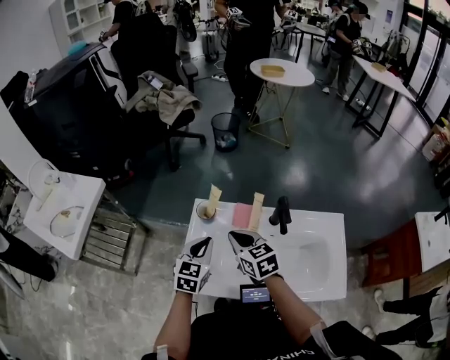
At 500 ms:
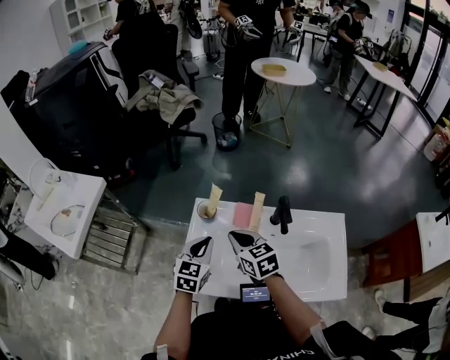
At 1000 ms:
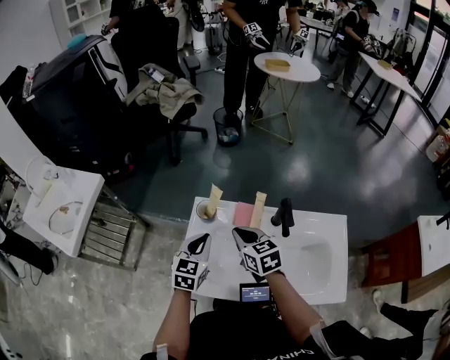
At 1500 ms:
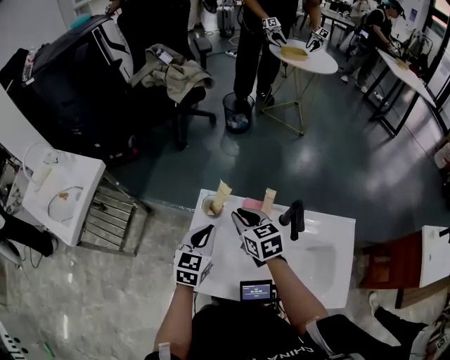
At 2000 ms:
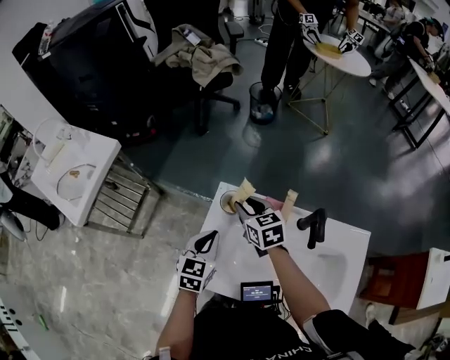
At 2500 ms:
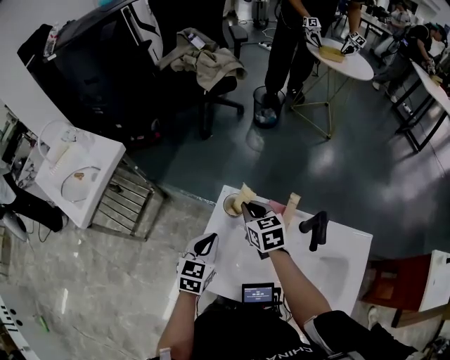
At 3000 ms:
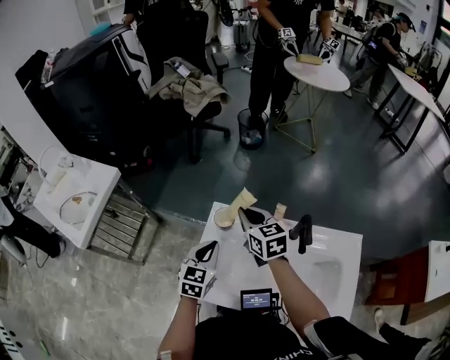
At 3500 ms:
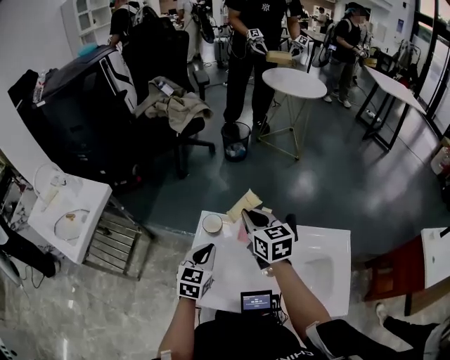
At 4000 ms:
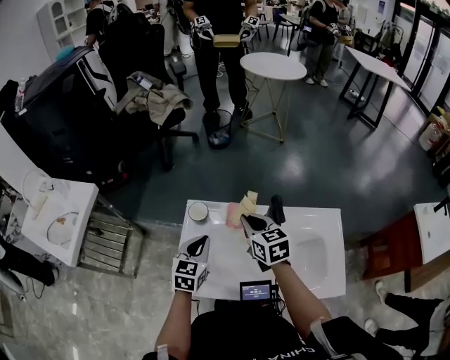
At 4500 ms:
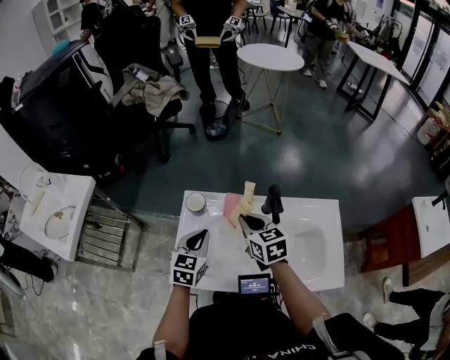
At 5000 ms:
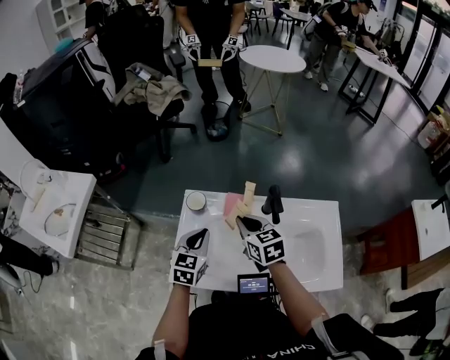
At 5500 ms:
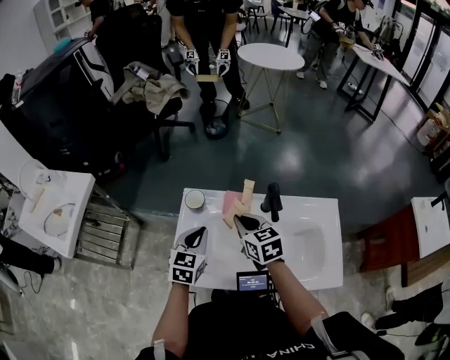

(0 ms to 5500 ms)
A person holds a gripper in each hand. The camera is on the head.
0 ms - 2000 ms: The left gripper shifts by some 5 cm. The right gripper moves forward, about 15 cm, and opens up.
2000 ms - 3500 ms: The right gripper goes approximately 15 cm upward and to the right, and closes; the left gripper changes place by approximately 5 cm.
3500 ms - 5500 ms: The right gripper moves backward and downward, some 10 cm.

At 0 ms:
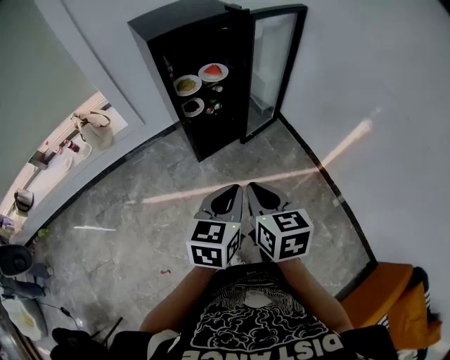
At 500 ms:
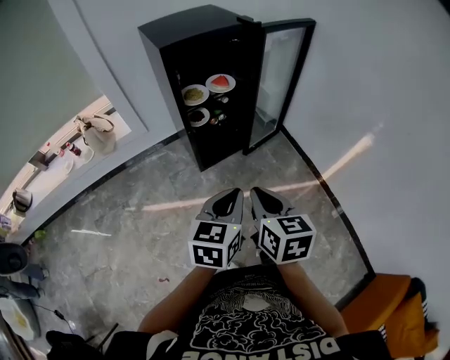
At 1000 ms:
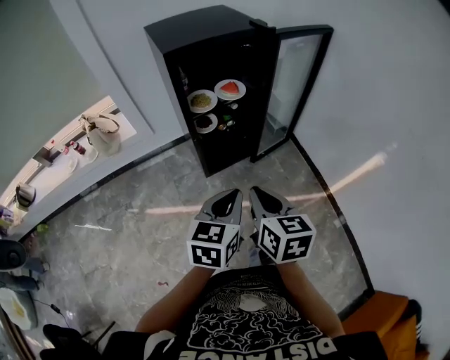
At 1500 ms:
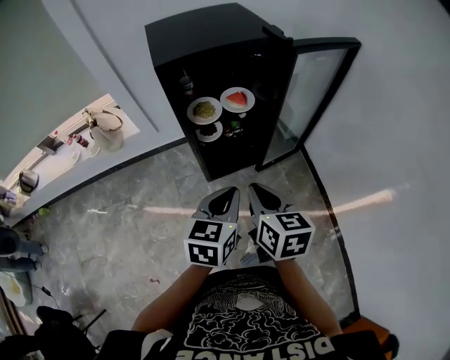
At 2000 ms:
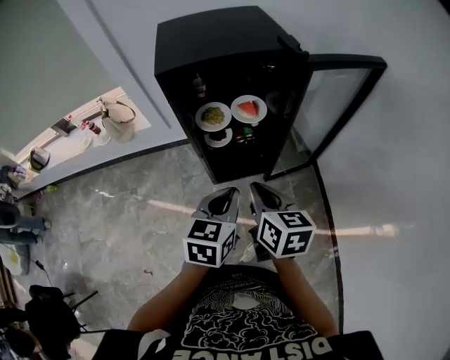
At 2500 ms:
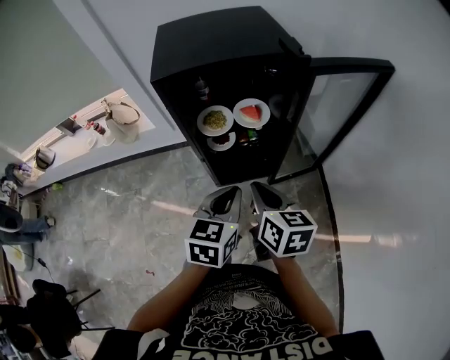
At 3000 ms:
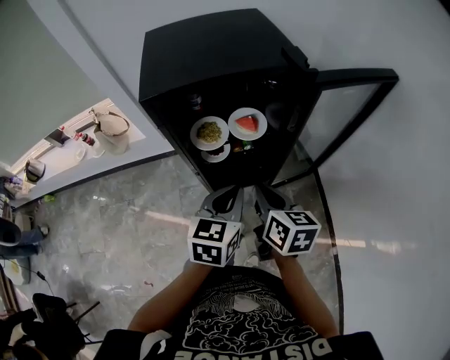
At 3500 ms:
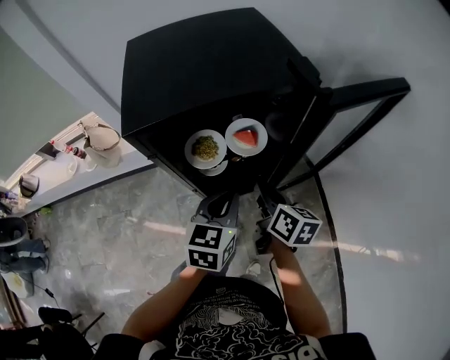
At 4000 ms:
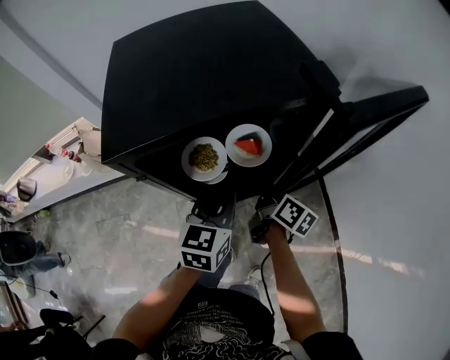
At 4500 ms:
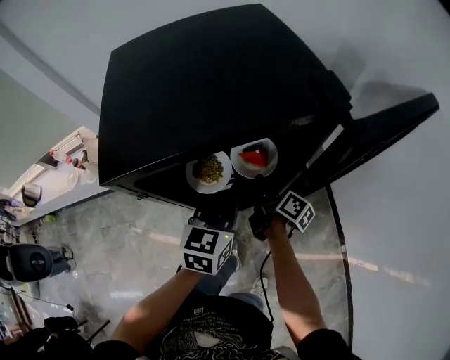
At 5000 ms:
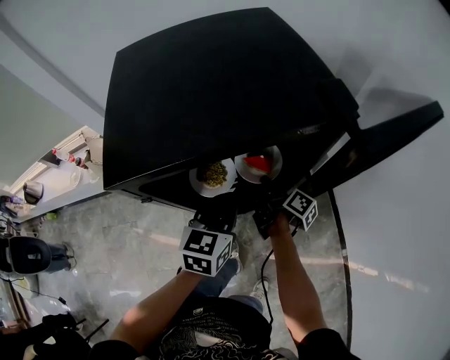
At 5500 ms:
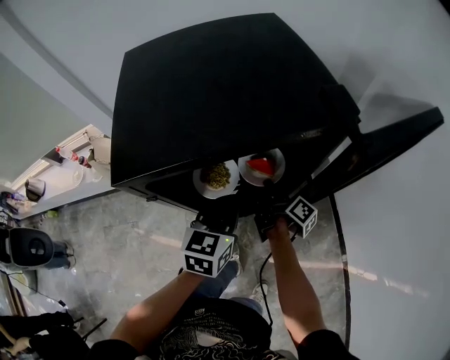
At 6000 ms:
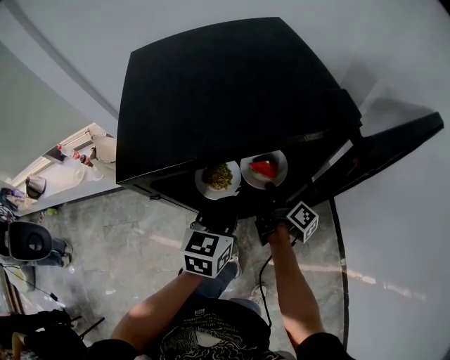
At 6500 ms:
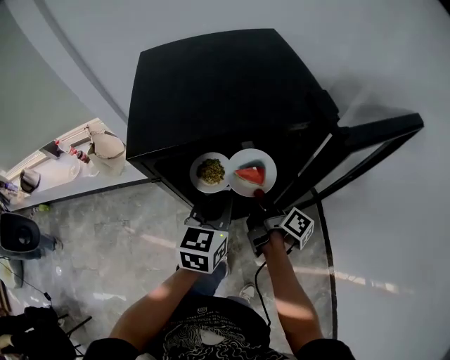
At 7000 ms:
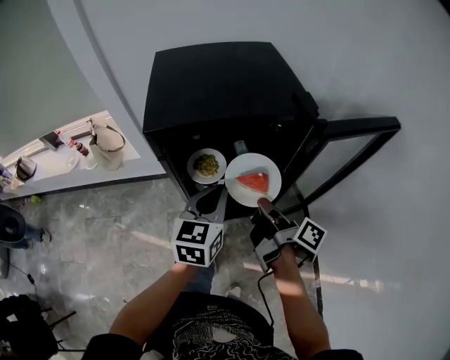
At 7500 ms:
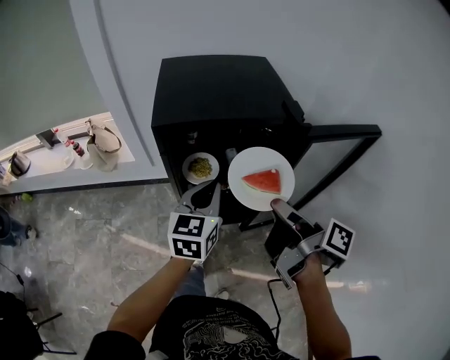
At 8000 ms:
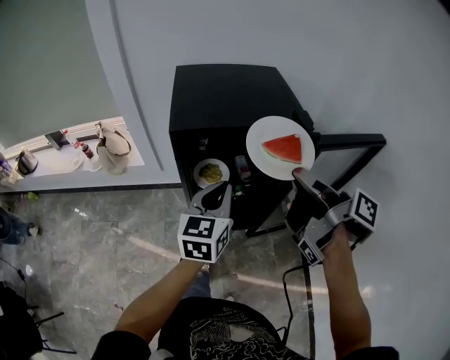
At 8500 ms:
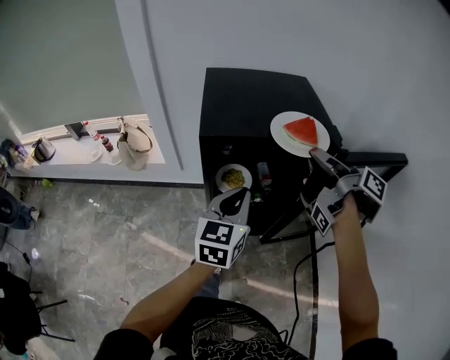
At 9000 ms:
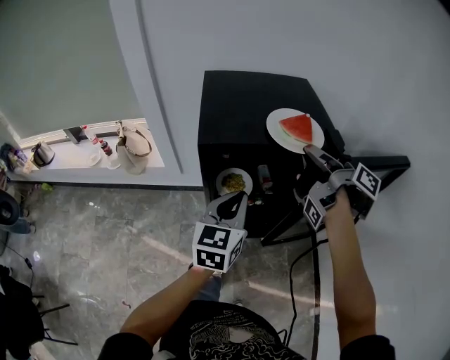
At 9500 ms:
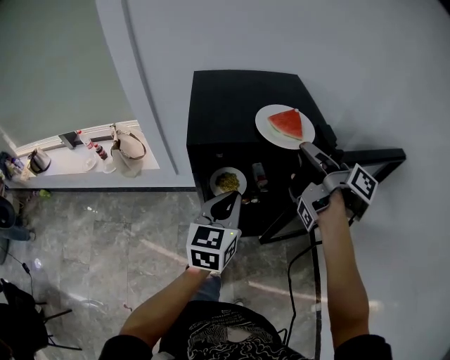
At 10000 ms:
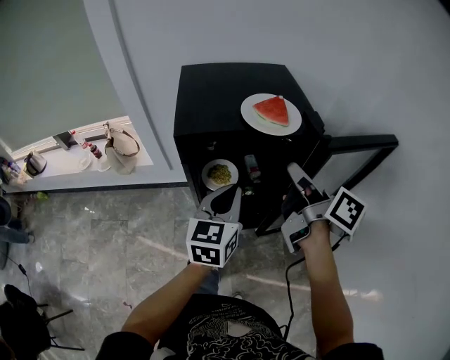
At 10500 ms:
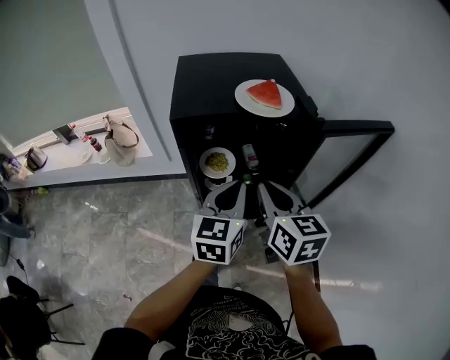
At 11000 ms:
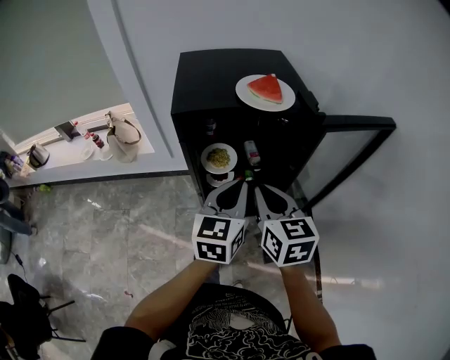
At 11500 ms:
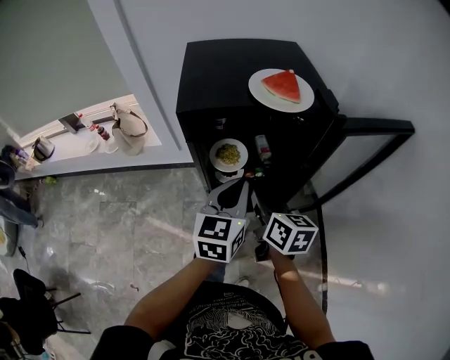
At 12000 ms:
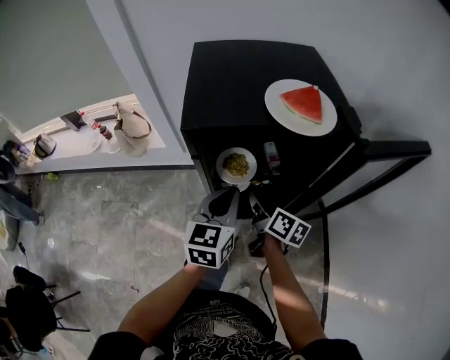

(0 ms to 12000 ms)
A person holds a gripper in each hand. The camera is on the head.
0 ms - 2000 ms: Both grippers move forward, roughly 30 cm.
2000 ms - 4000 ms: The left gripper heads forward, covering approximately 25 cm. Meanwhile the right gripper travels forward and downward by about 30 cm, and rotates some 40 degrees.
4000 ms - 6000 ms: The right gripper goes approximately 5 cm forward, swivels some 30 degrees, and opens, then closes again.
6000 ms - 8000 ms: The left gripper is displaced upward and backward by approximately 15 cm. The right gripper goes about 40 cm upward and backward, and changes its angle by about 20 degrees.
8000 ms - 10000 ms: The right gripper turns by approximately 20 degrees.
10000 ms - 12000 ms: The left gripper travels downward by some 10 cm. The right gripper goes approximately 25 cm downward.

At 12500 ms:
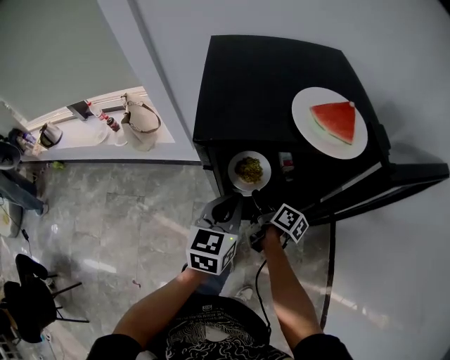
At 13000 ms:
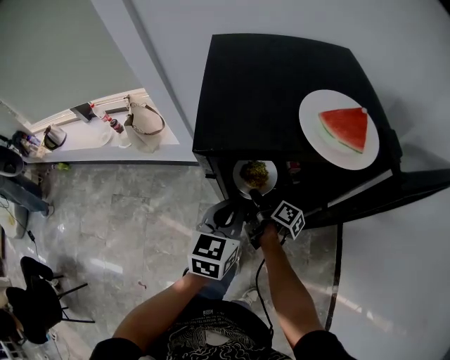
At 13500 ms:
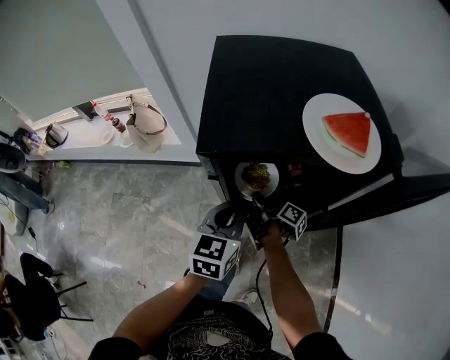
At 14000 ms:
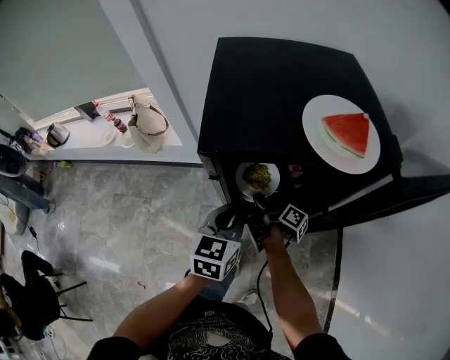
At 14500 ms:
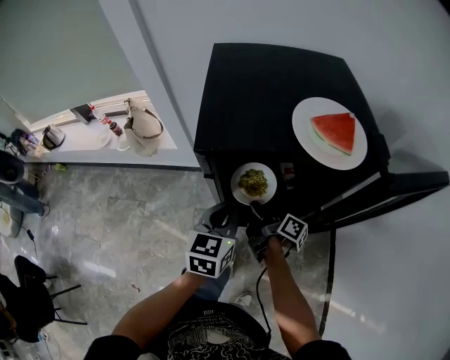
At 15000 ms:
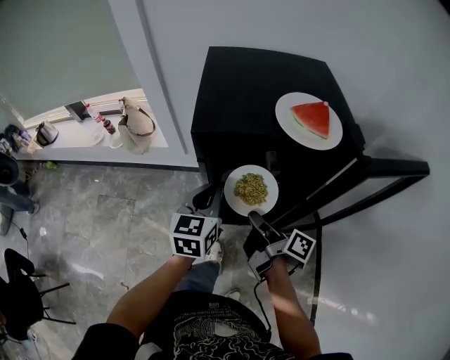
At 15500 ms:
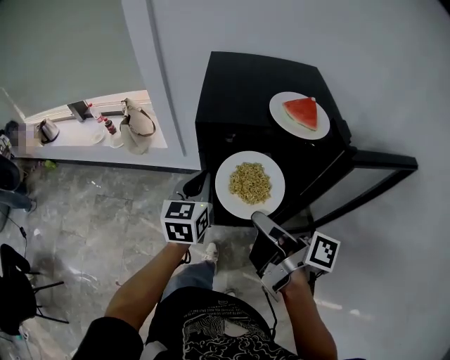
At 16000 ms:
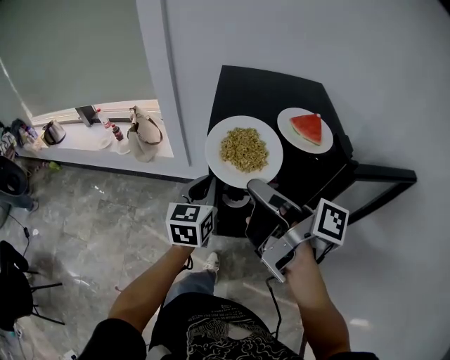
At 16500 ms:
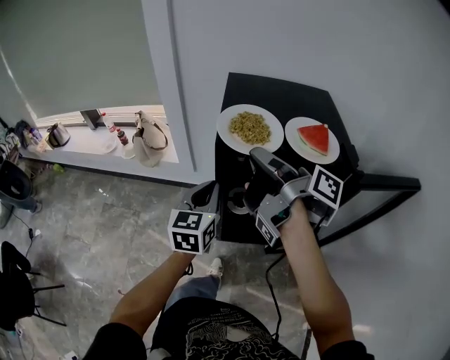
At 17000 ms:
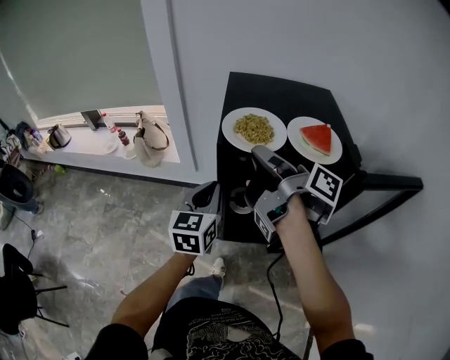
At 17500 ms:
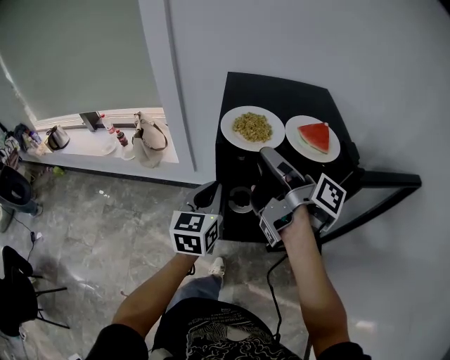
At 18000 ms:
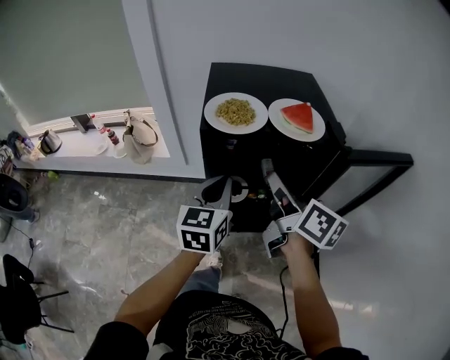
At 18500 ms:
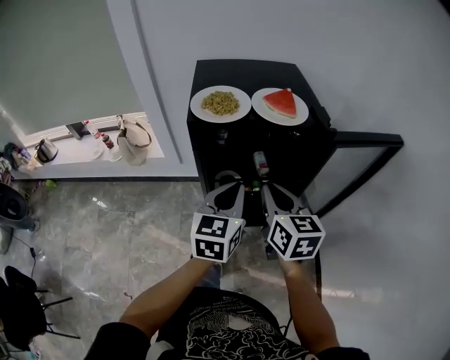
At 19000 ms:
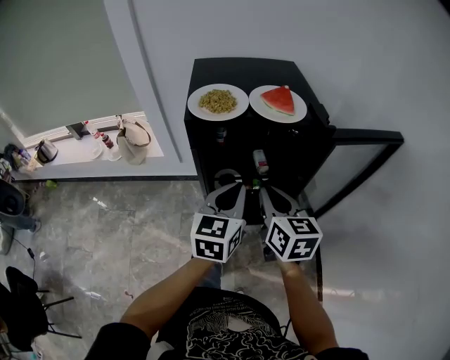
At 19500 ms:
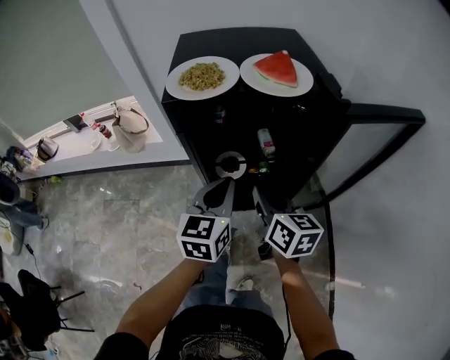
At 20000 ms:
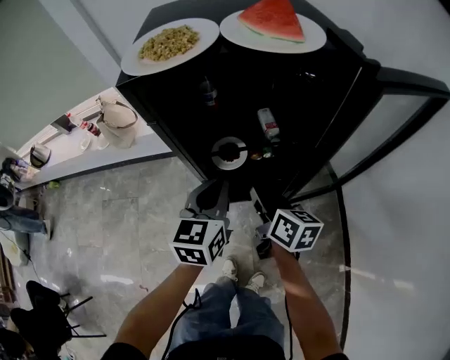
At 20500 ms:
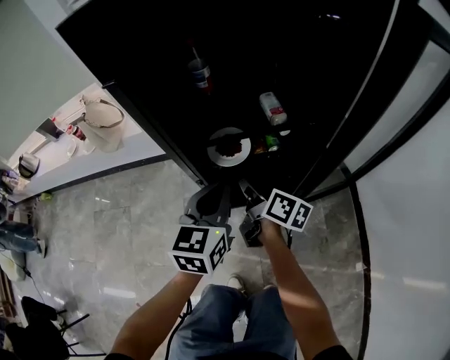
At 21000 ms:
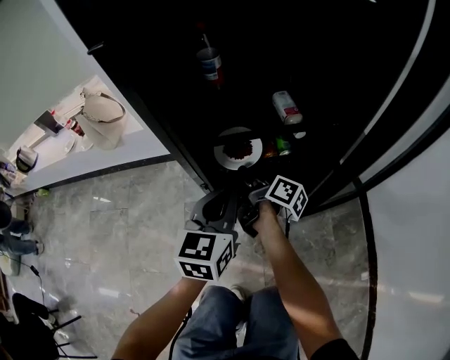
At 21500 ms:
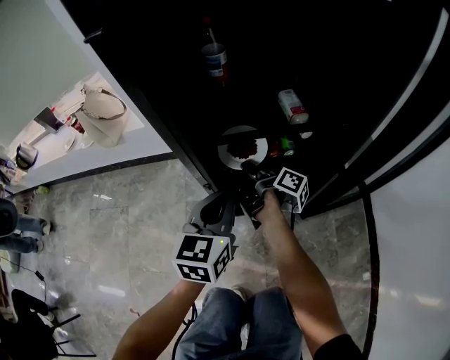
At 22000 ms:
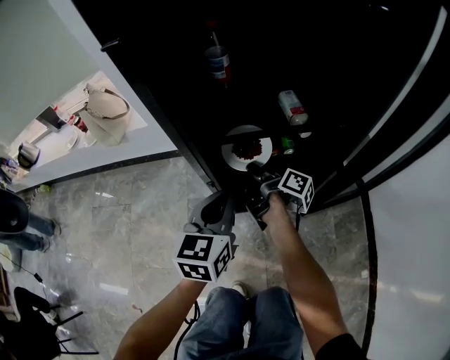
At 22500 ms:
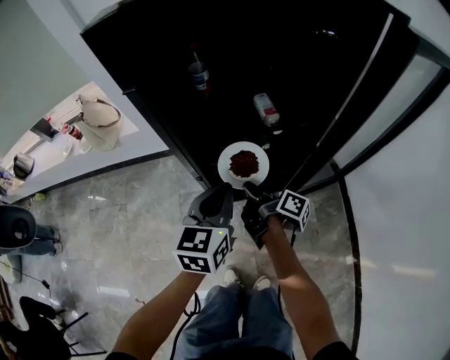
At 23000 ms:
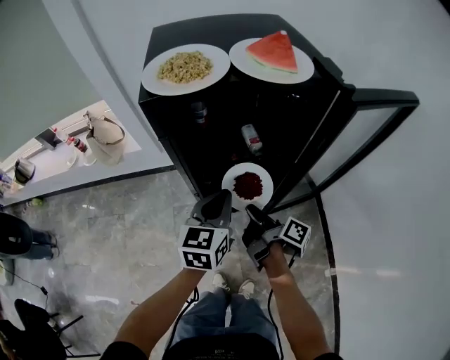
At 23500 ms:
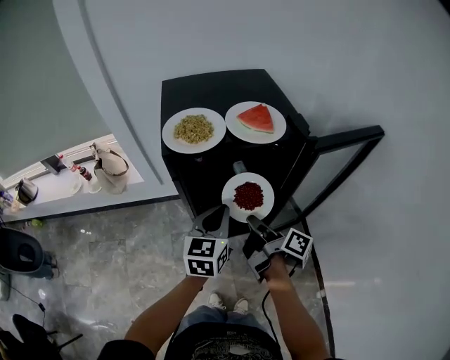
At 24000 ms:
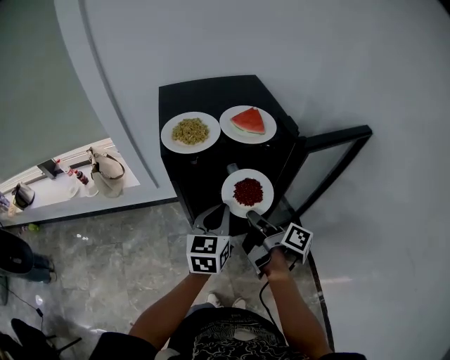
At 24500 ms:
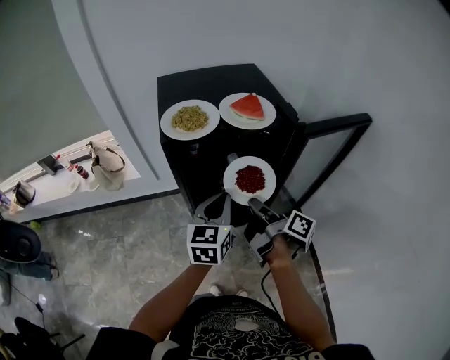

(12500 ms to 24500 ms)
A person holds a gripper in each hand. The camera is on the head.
12500 ms - 14500 ms: The right gripper closes its fingers.
14500 ms - 16500 ms: The right gripper moves upward, about 35 cm. Meanwhile the left gripper moves upward and to the left, some 10 cm.
16500 ms - 18500 ms: The right gripper travels backward, downward and to the right by roughly 20 cm, and rotates around the line of its fingers by approximately 70 degrees, counterclockwise from behind. Meanwhile the left gripper is displaced to the right and backward by some 15 cm.
18500 ms - 20500 ms: Both grippers move downward, about 35 cm. The right gripper rotates around the line of its fingers by about 50 degrees, clockwise from behind.
20500 ms - 22500 ms: The left gripper reaches about 10 cm downward, then returns; the right gripper goes forward and returns, roughly 10 cm each way, and turns by roughly 30 degrees.
22500 ms - 24500 ms: Both grippers move upward, approximately 30 cm.
